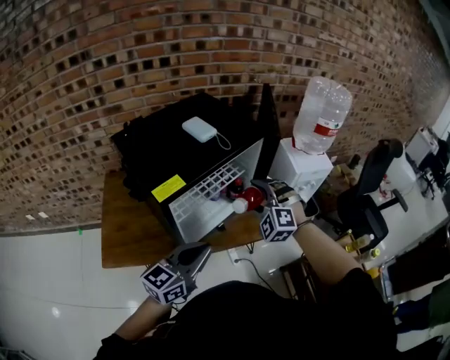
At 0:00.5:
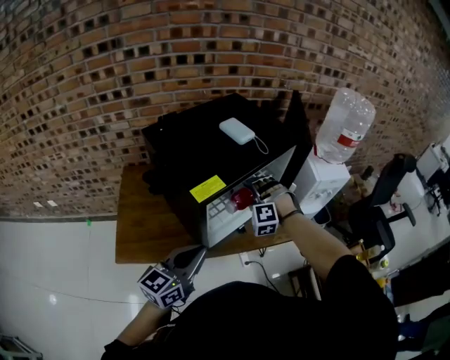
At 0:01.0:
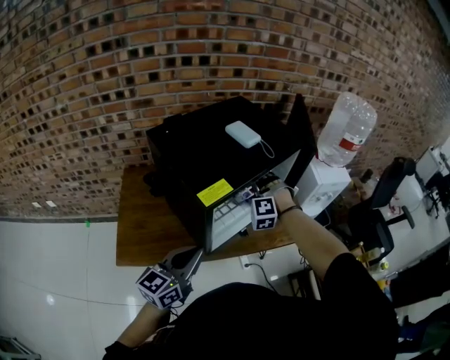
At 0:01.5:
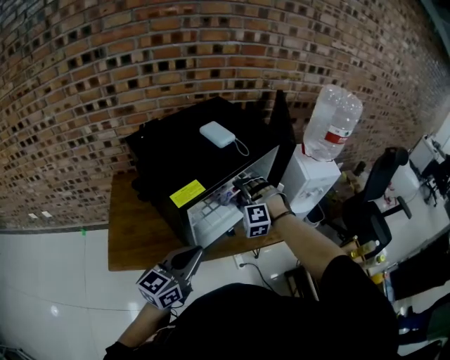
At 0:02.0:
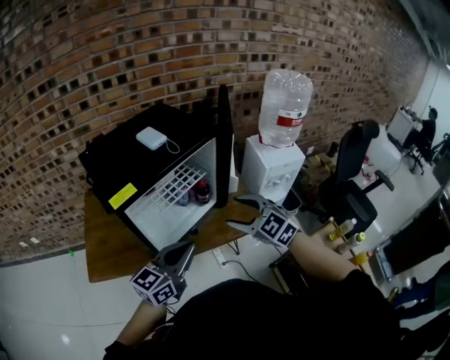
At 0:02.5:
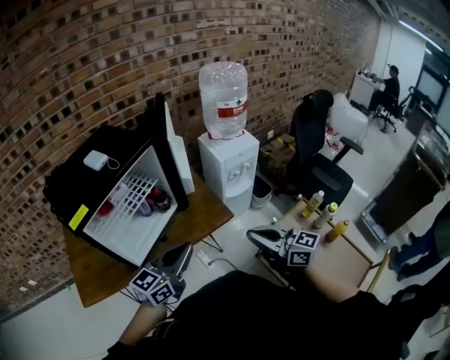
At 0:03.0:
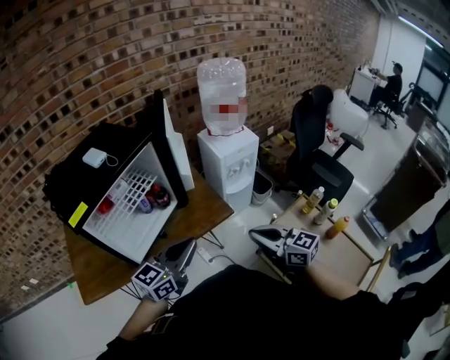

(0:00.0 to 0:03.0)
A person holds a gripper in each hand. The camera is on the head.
0:00.0 - 0:01.5: The left gripper is displaced to the left by some 10 cm. Meanwhile the right gripper travels to the left and downward by roughly 10 cm.
0:01.5 - 0:03.0: The right gripper shifts about 50 cm to the right and backward, rotates around the line of its fingers by about 90 degrees, clockwise from behind, and closes up. The left gripper is displaced to the right by approximately 30 cm, and rotates roughly 20 degrees.

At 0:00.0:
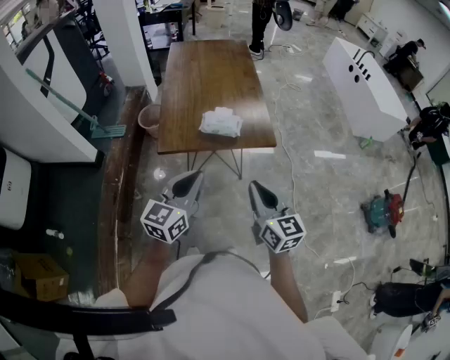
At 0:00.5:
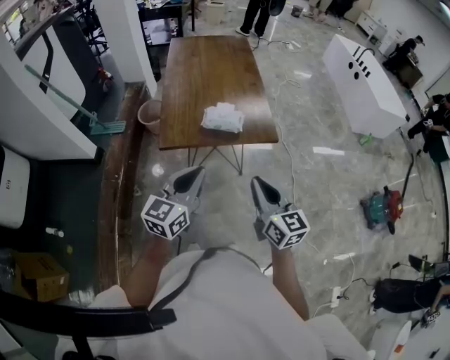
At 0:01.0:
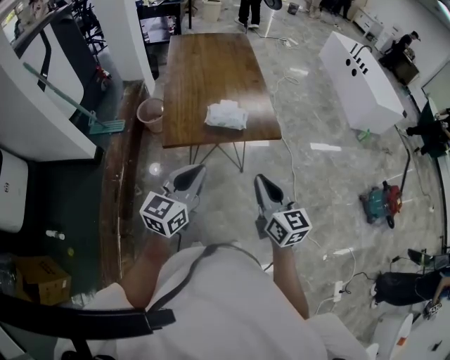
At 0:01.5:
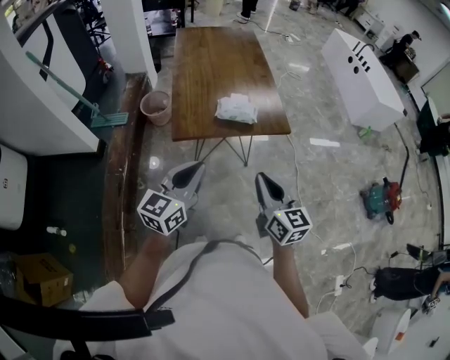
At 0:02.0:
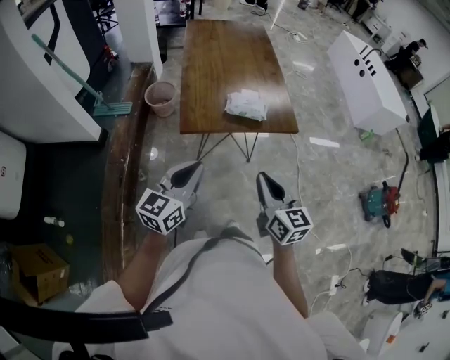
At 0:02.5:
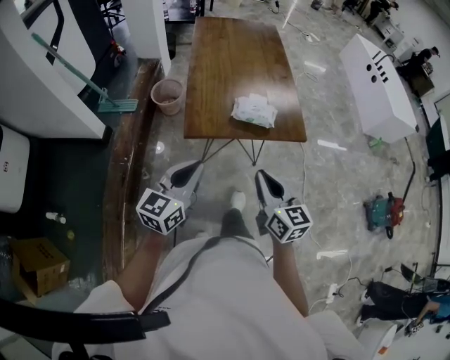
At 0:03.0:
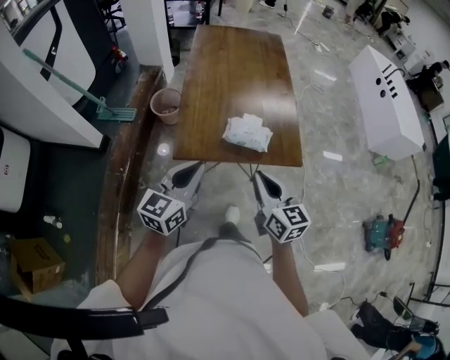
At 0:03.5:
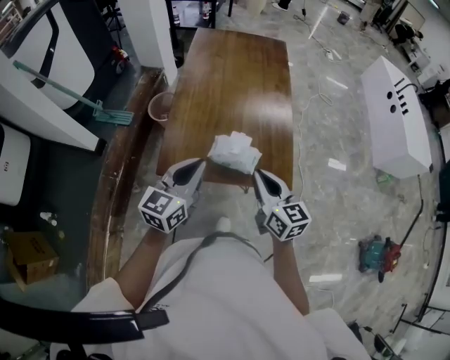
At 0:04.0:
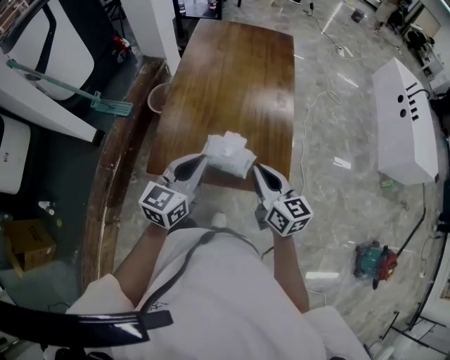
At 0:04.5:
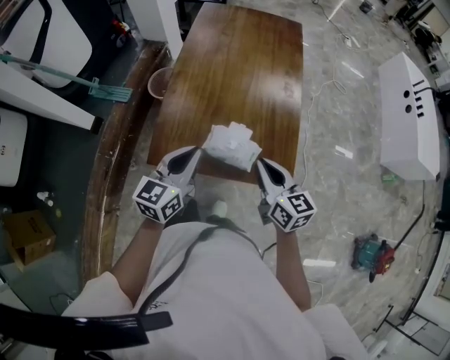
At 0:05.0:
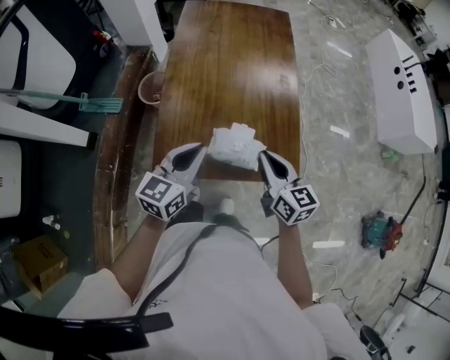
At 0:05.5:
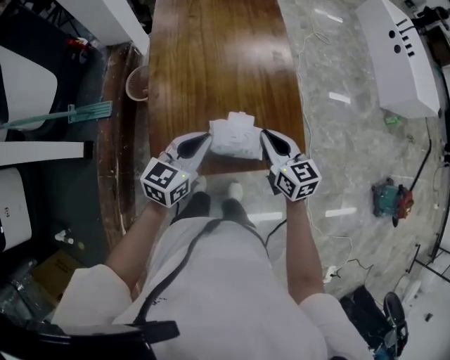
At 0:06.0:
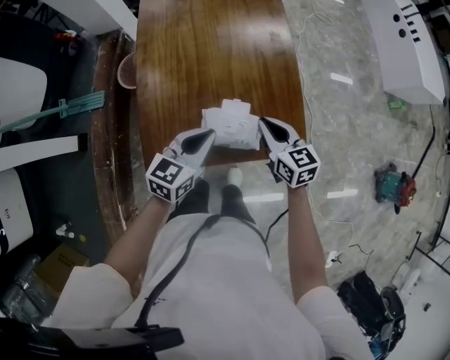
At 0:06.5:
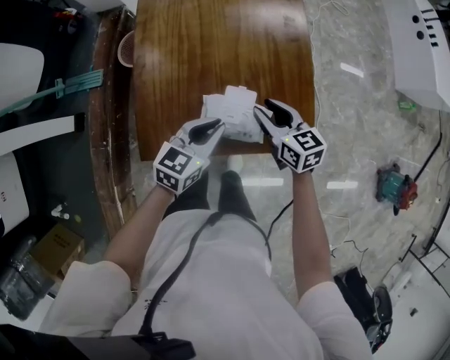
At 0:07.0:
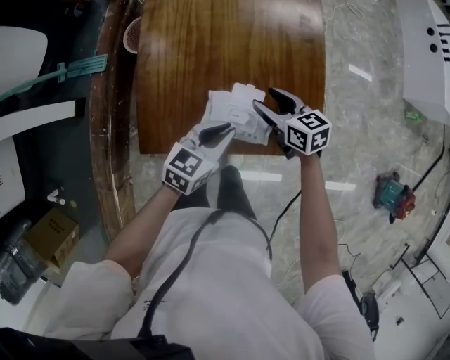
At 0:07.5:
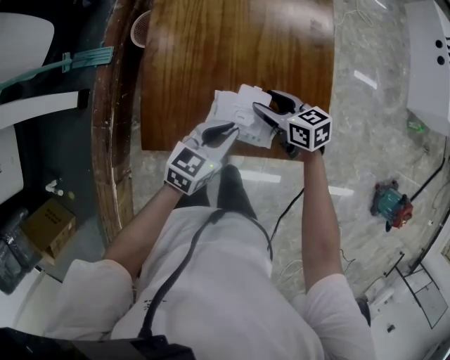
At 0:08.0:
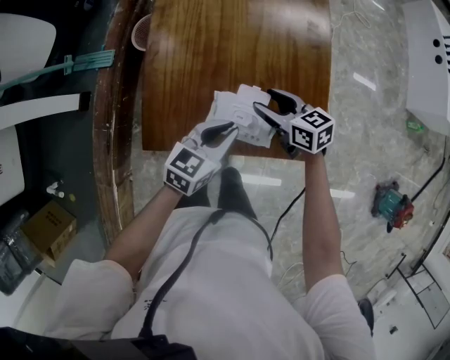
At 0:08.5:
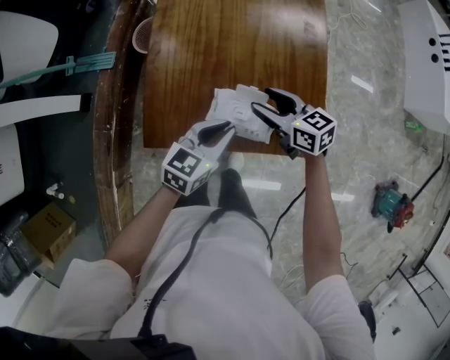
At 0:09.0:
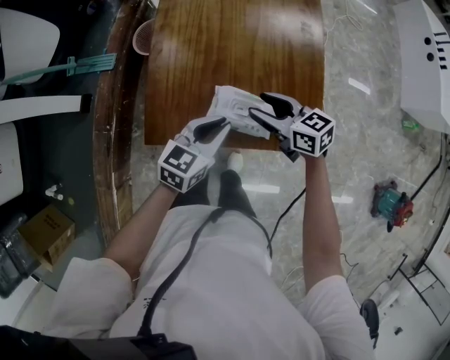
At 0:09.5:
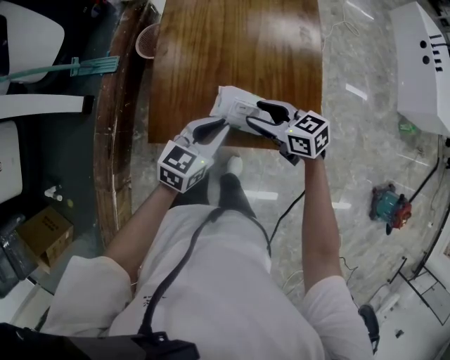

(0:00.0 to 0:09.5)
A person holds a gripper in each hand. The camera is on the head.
0:00.0 - 0:02.0: The two grippers go roughly 15 cm to the left.
0:02.0 - 0:04.0: The right gripper is displaced forward by approximately 35 cm, and turns by about 20 degrees; the left gripper travels forward and to the right by some 35 cm.
0:04.0 - 0:05.5: Both grippers travel together forward and downward, some 10 cm. The left gripper rotates roughly 20 degrees.
0:05.5 - 0:07.5: The right gripper goes about 15 cm downward and forward, changes its angle by approximately 30 degrees, and opens. The left gripper goes roughly 15 cm downward and to the right.
0:07.5 - 0:09.5: The left gripper travels upward by some 5 cm, while the right gripper travels backward and upward by approximately 10 cm.

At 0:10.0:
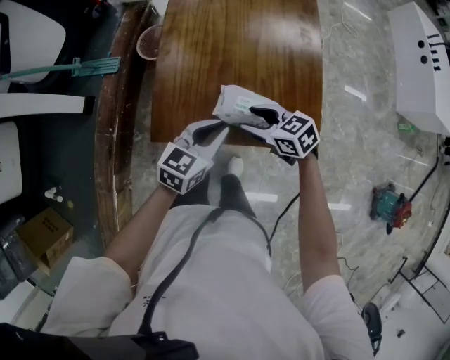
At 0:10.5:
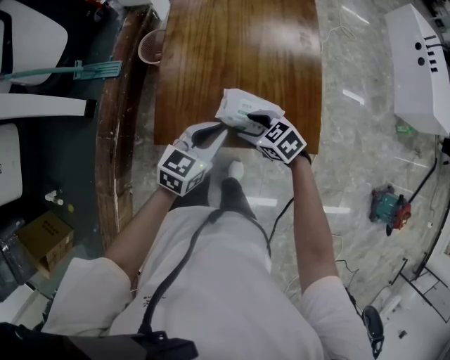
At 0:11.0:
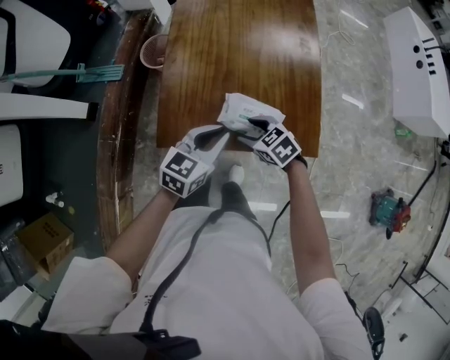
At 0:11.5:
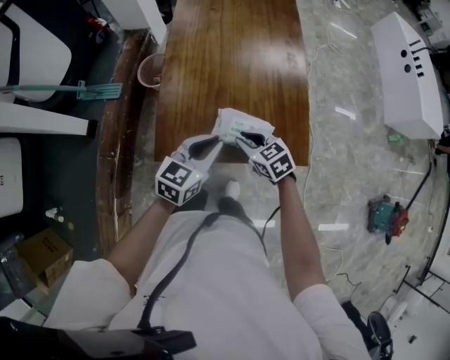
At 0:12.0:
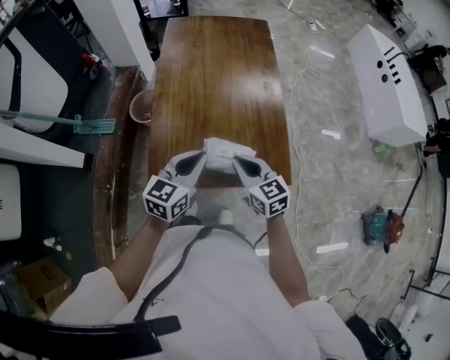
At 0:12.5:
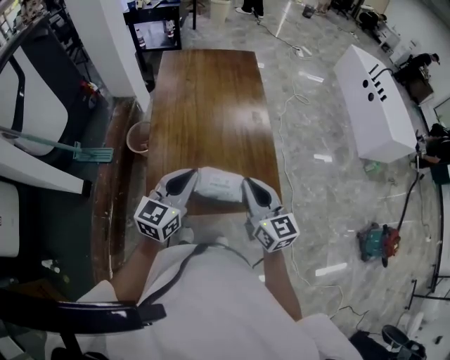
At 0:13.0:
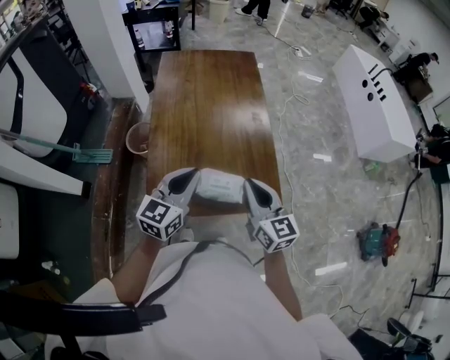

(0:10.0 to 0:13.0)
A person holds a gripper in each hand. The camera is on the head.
0:10.0 - 0:11.5: The right gripper closes.
0:11.5 - 0:13.0: The right gripper is displaced upward by approximately 20 cm, and points its fingers some 30 degrees further upward. Meanwhile the left gripper goes some 15 cm upward.

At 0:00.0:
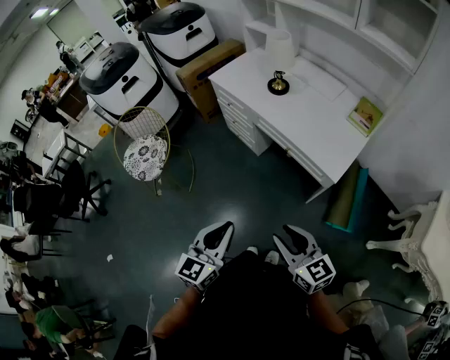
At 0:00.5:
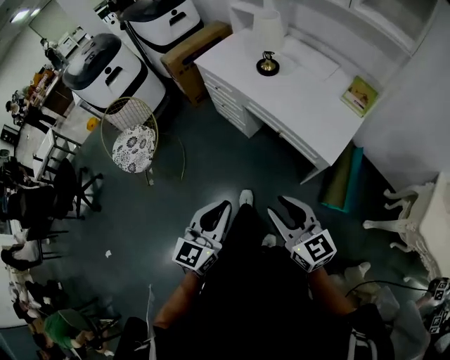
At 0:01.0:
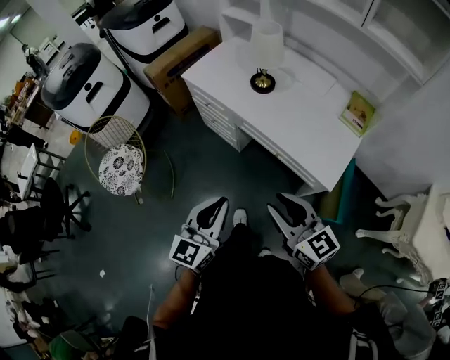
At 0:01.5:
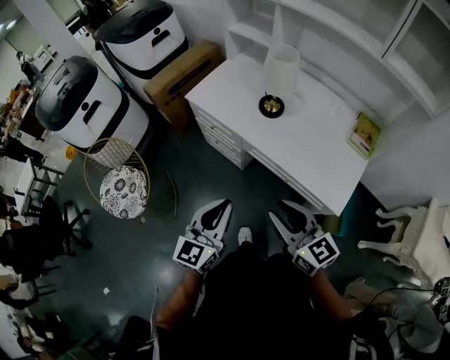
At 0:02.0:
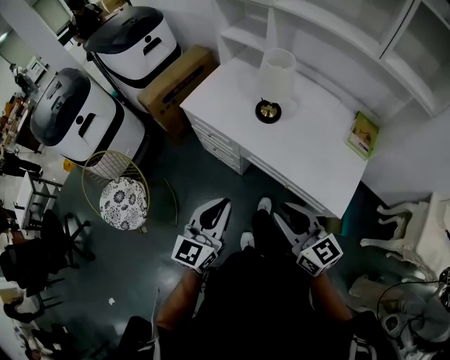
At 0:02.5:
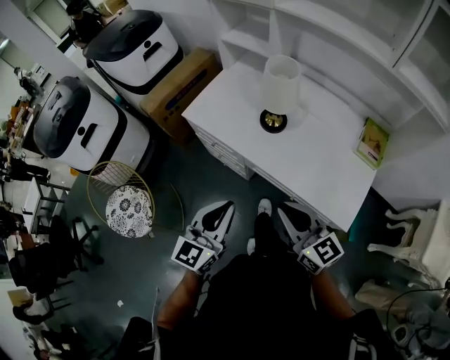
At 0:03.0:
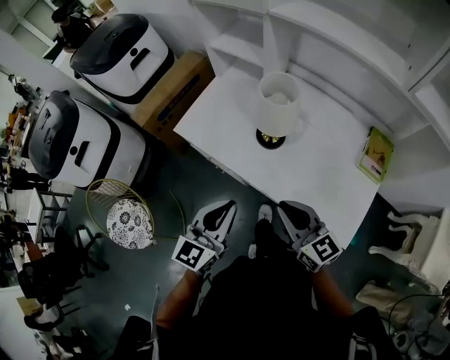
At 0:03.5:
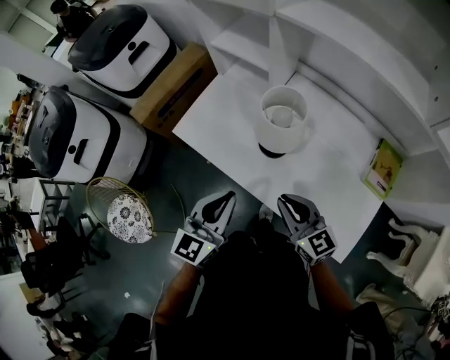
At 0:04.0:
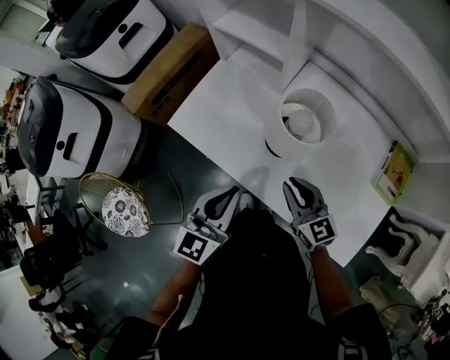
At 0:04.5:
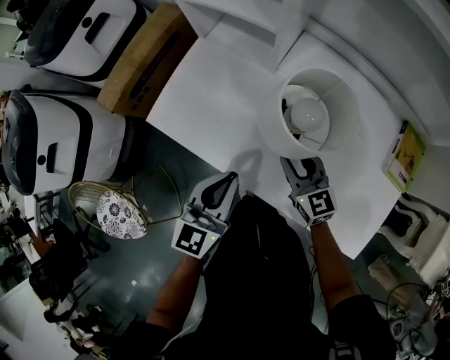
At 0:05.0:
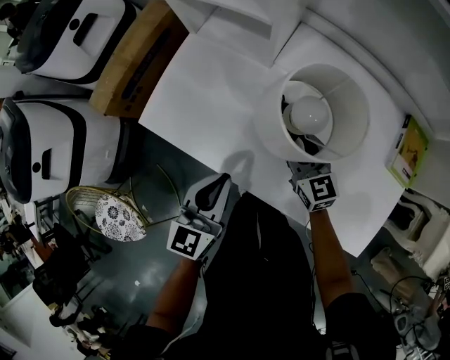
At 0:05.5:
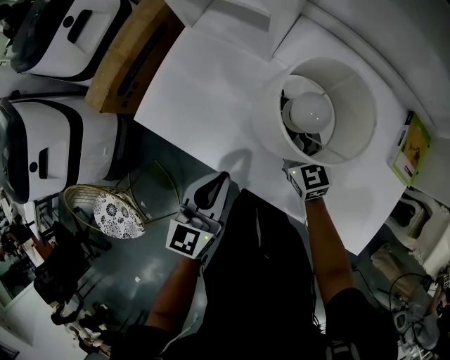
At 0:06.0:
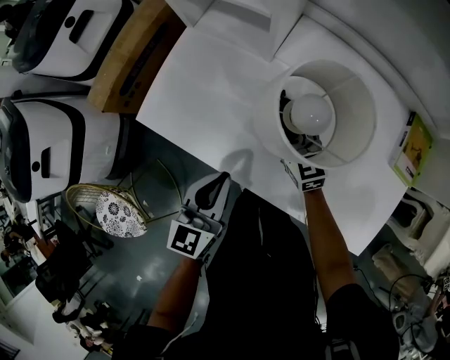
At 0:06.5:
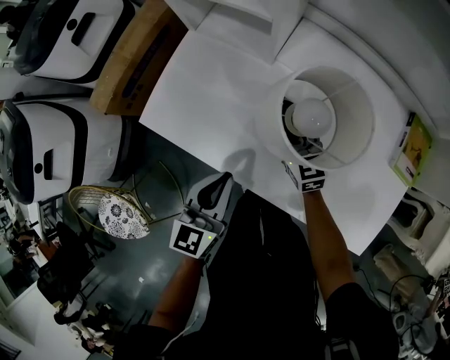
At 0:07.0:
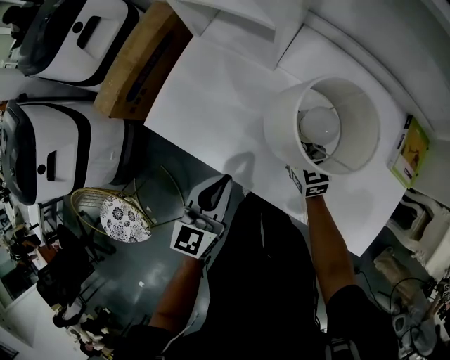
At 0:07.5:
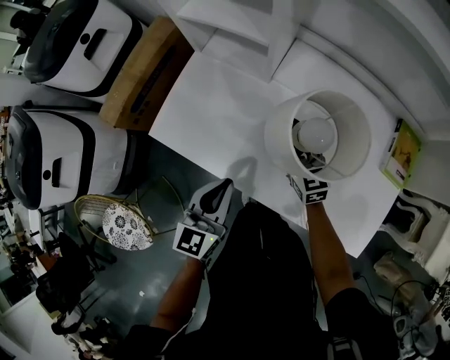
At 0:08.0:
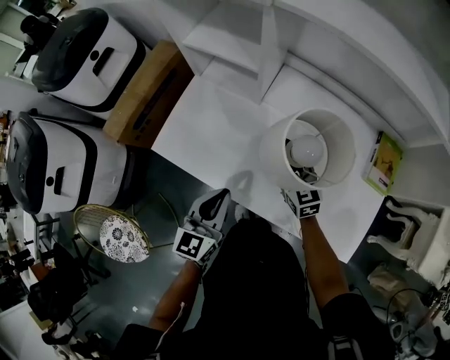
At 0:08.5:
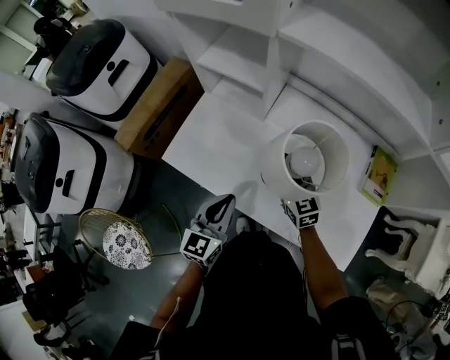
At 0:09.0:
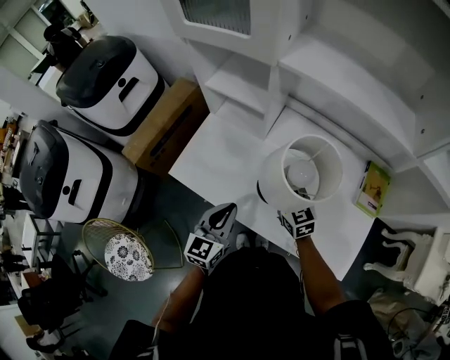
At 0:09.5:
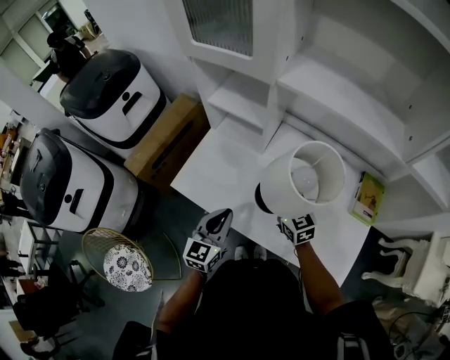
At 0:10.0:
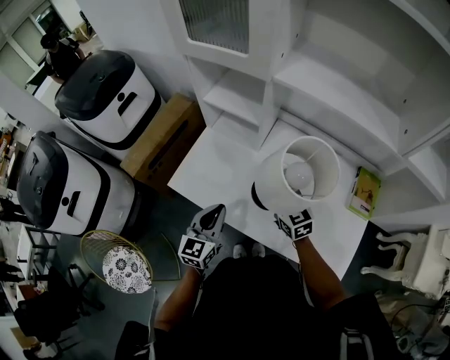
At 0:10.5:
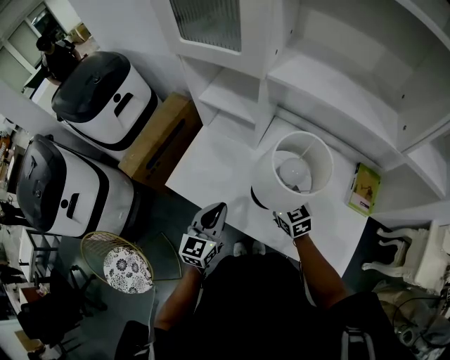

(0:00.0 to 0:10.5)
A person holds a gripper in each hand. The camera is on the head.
0:00.0 - 0:02.0: Both grippers move forward, roughly 35 cm.
0:02.0 - 0:04.0: The right gripper moves forward and downward, about 35 cm; the left gripper heads forward, covering roughly 30 cm.
0:04.0 - 0:06.5: The left gripper travels downward by about 10 cm, while the right gripper travels forward and downward by roughly 20 cm.
0:06.5 - 0:08.5: Both grippers travel together upward, approximately 10 cm.
0:08.5 - 0:10.5: The right gripper travels upward by about 5 cm.
